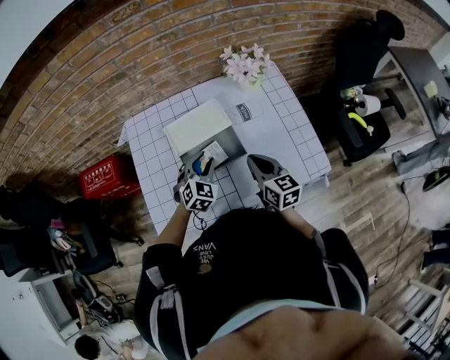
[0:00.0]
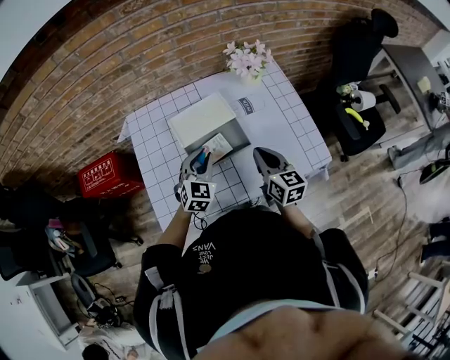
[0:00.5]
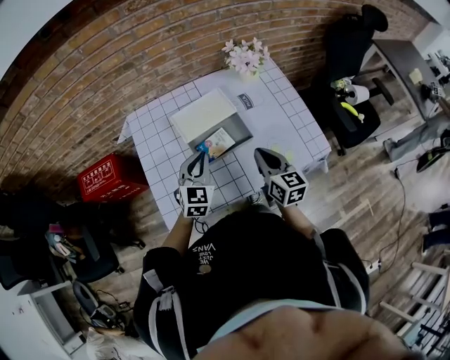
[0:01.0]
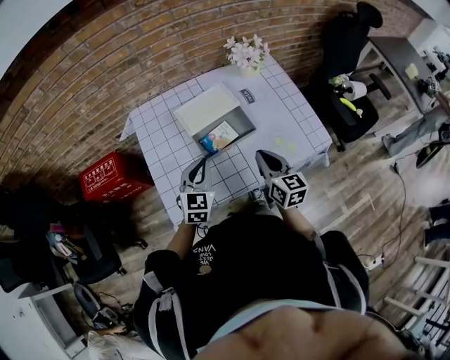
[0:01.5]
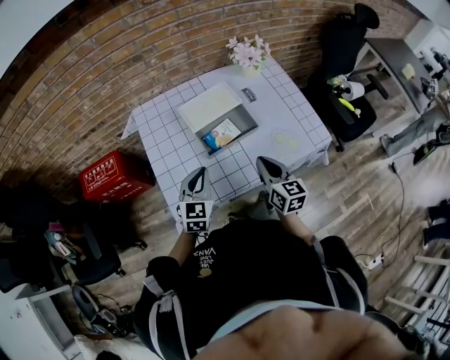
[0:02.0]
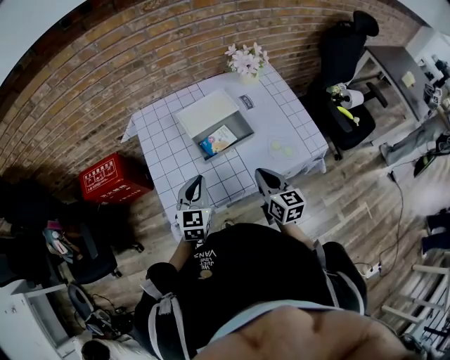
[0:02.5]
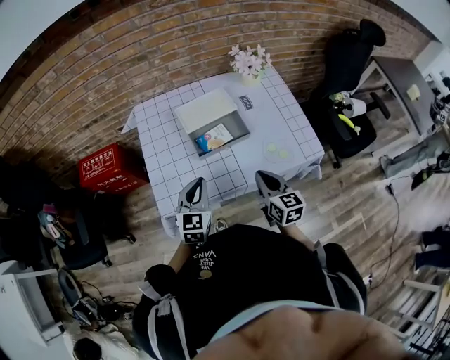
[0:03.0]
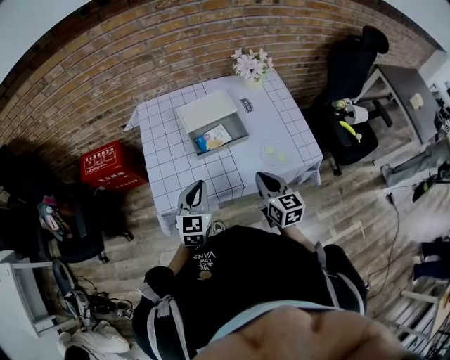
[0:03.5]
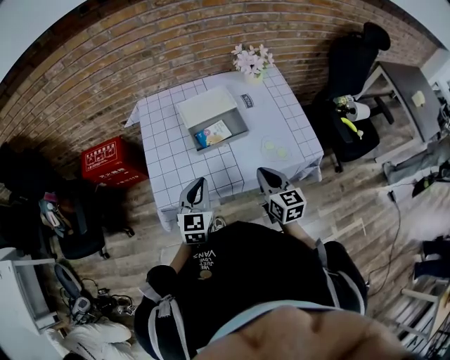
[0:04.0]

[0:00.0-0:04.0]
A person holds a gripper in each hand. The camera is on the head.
0:00.0 to 0:02.0: The two grippers go some 15 cm backward and to the left. The left gripper swivels roughly 30 degrees, and closes its fingers.
0:02.0 to 0:04.0: The left gripper goes some 10 cm backward and to the right. The right gripper moves to the right, about 5 cm.

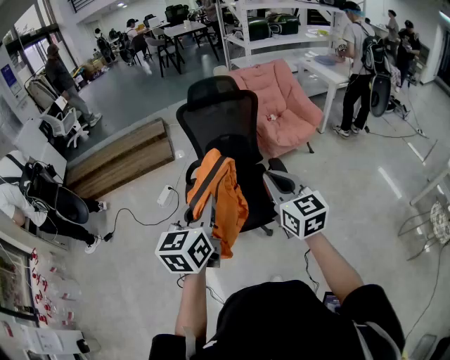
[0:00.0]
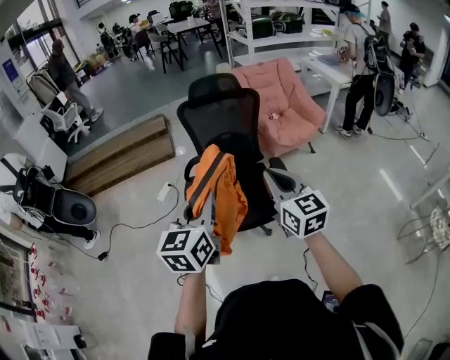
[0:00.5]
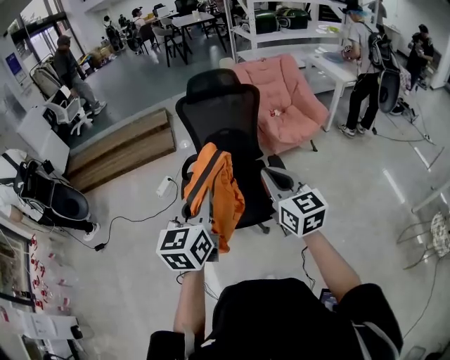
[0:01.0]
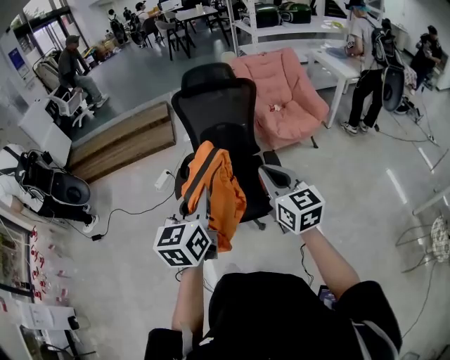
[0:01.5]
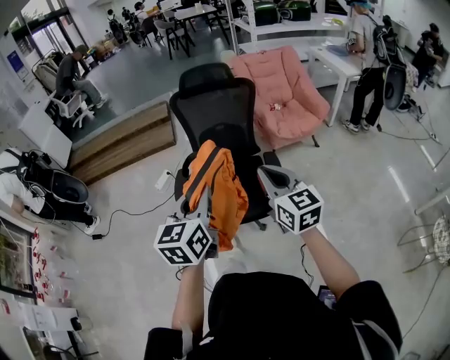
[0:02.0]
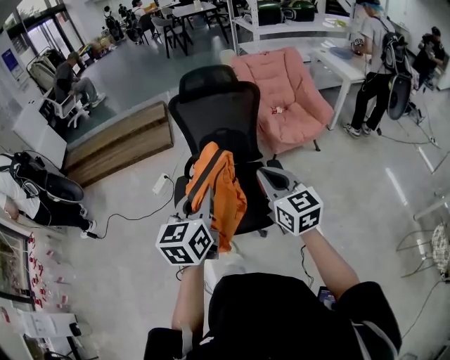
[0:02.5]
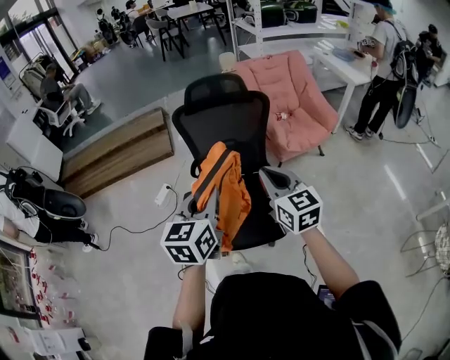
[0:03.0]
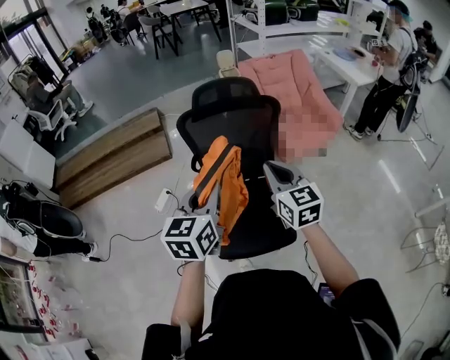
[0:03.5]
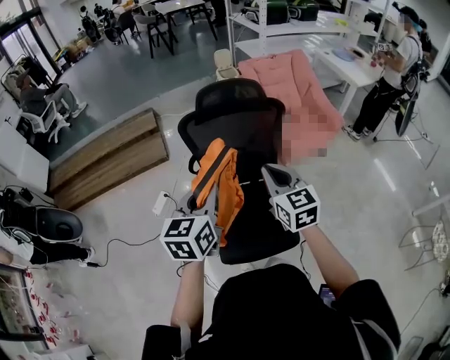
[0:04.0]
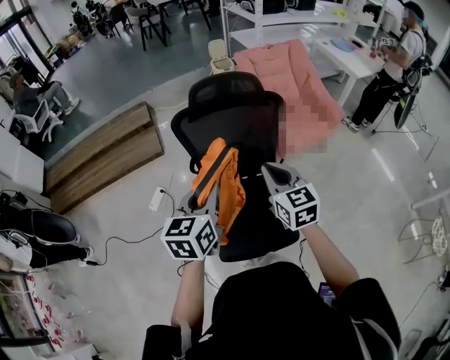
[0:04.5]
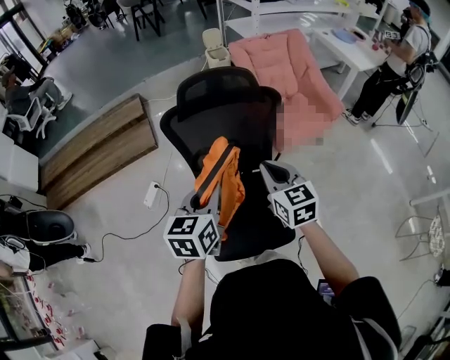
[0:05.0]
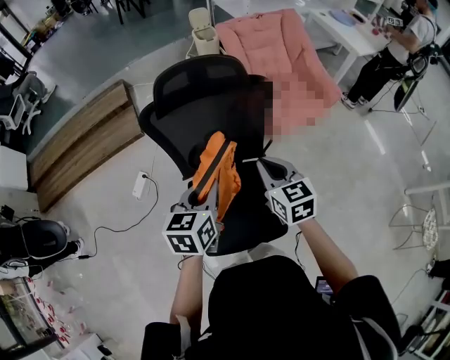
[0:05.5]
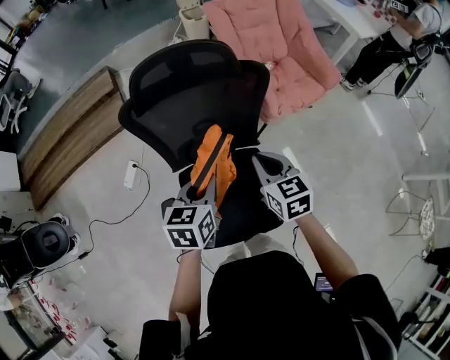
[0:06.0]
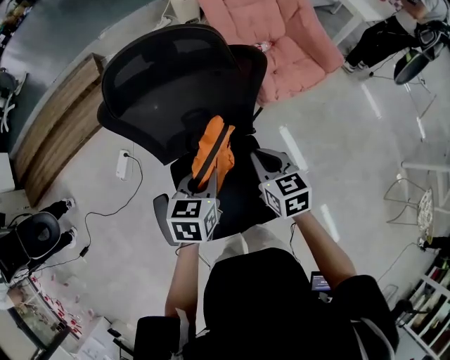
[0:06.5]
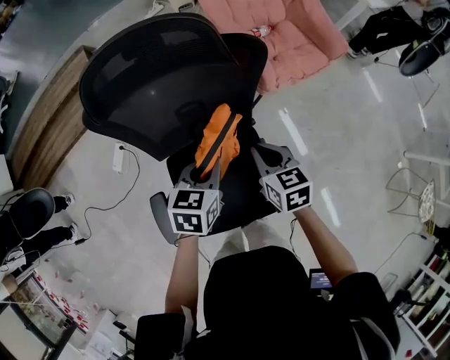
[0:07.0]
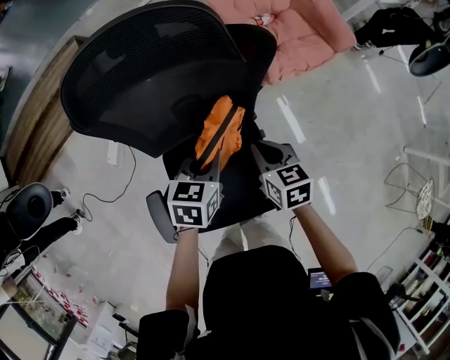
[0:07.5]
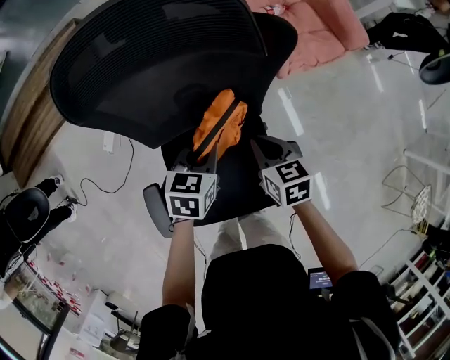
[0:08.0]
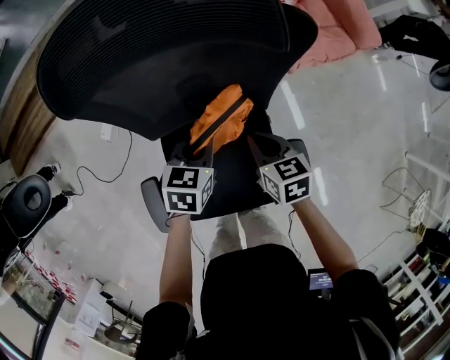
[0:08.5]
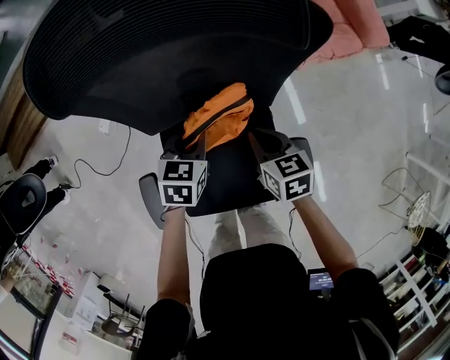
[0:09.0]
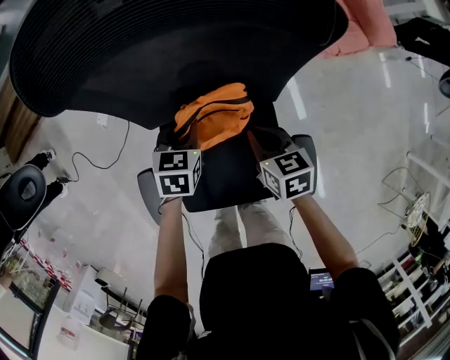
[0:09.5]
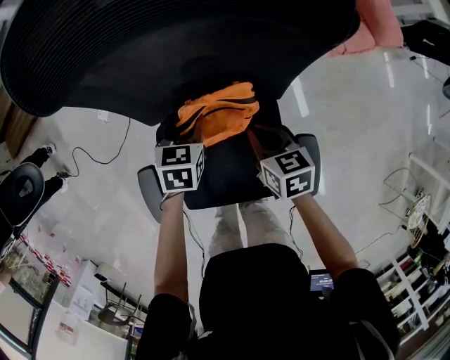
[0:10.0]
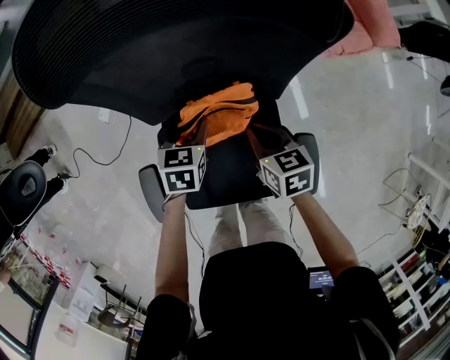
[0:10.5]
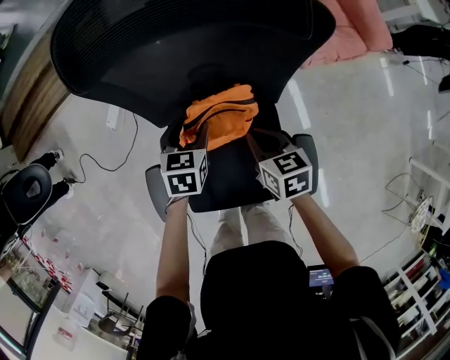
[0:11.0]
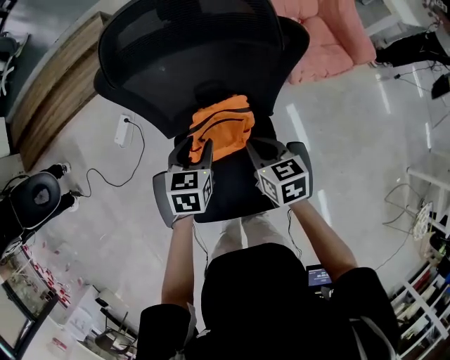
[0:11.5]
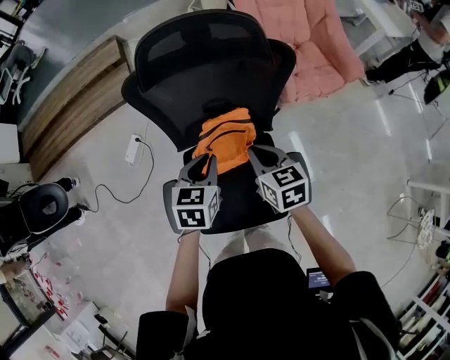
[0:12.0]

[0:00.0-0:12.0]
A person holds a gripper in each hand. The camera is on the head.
0:00.0 to 0:02.0: Both grippers travel together to the right, roughly 10 cm.
0:02.0 to 0:04.0: The grippers both shift forward and to the left by about 35 cm.
0:04.0 to 0:06.0: The two grippers go approximately 25 cm downward, forward and to the right. The left gripper swivels some 20 degrees.
0:06.0 to 0:08.0: The right gripper goes about 20 cm downward. Meanwhile the left gripper heads downward and forward, covering about 20 cm.
0:08.0 to 0:10.0: The left gripper is displaced downward and to the left by approximately 15 cm, and opens. Meanwhile the right gripper shifts approximately 10 cm downward.
0:10.0 to 0:12.0: The left gripper shifts about 25 cm upward and backward, and closes up. The right gripper heads upward, covering approximately 20 cm.

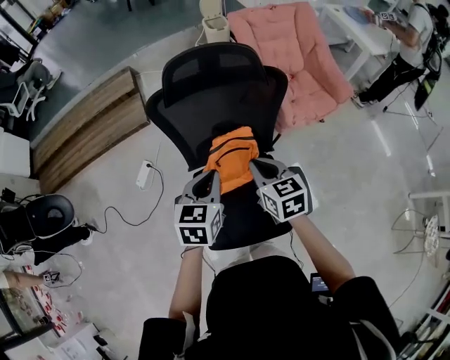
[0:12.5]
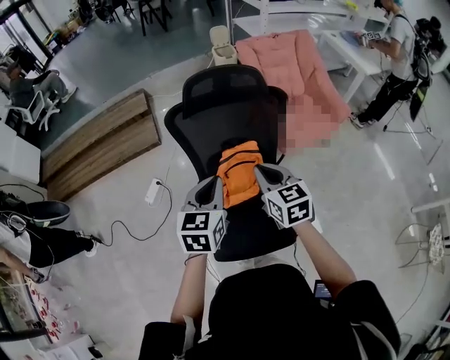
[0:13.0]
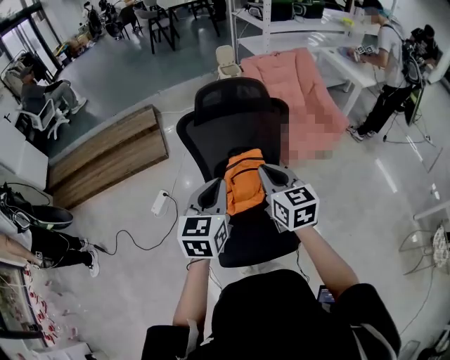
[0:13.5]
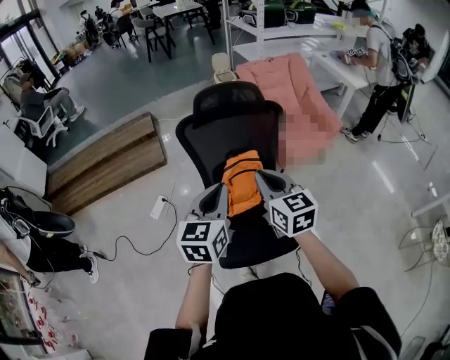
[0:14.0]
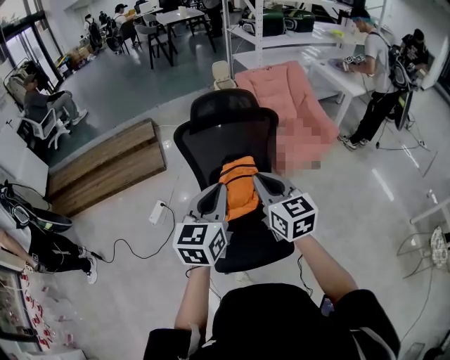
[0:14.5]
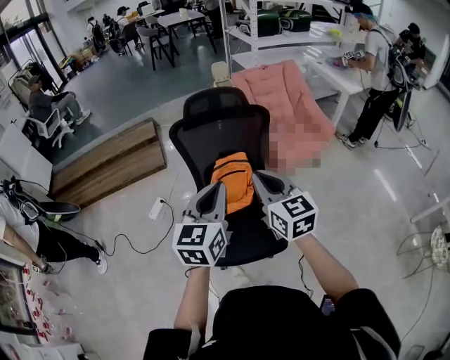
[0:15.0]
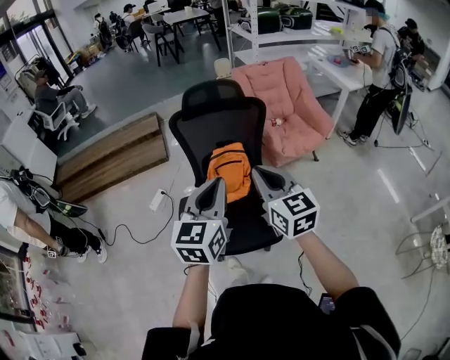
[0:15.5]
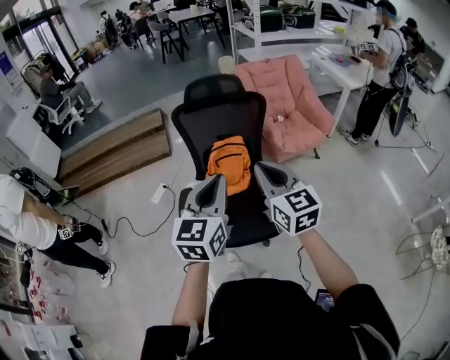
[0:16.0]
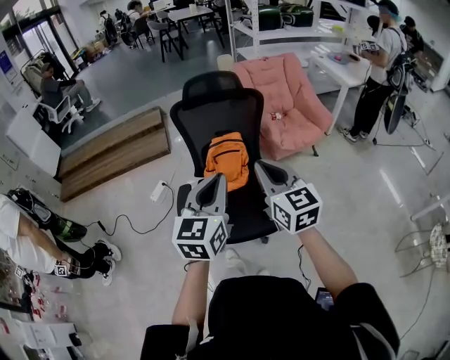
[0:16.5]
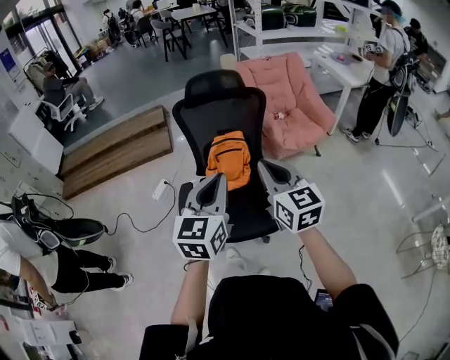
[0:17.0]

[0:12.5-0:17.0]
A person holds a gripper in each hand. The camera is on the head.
0:12.5 to 0:14.5: Both grippers move upward and backward, some 25 cm. The left gripper changes its angle by some 20 degrees, while the right gripper swivels approximately 20 degrees.
0:14.5 to 0:17.0: Both grippers travel together backward and to the right, roughly 20 cm.

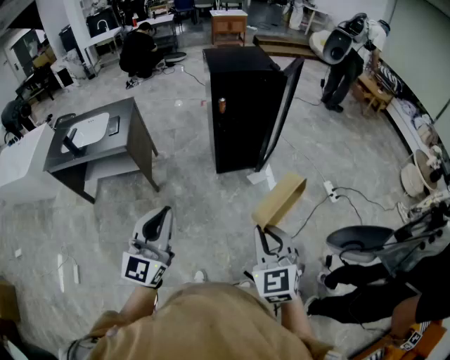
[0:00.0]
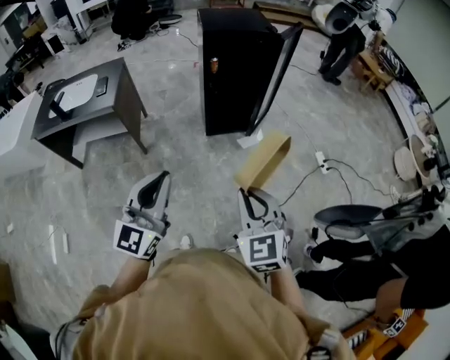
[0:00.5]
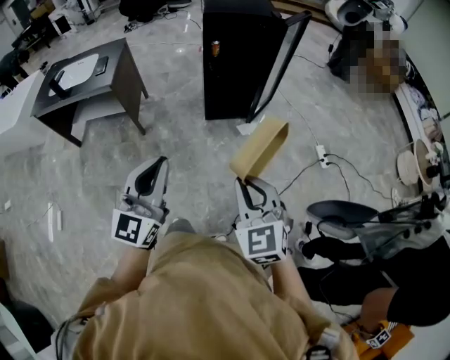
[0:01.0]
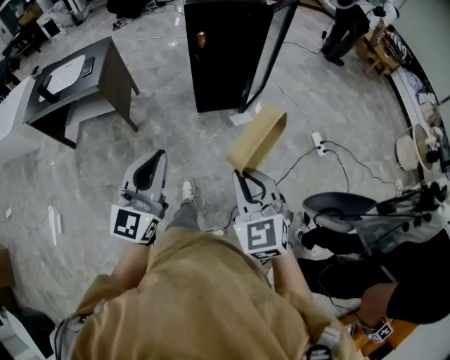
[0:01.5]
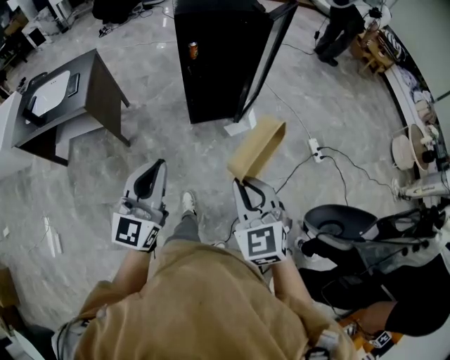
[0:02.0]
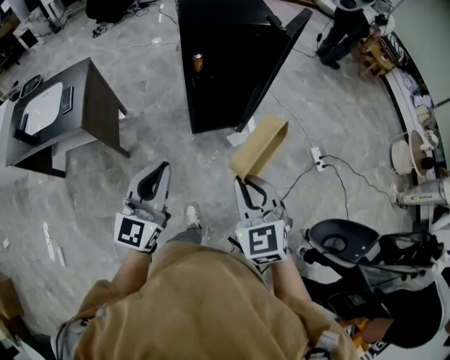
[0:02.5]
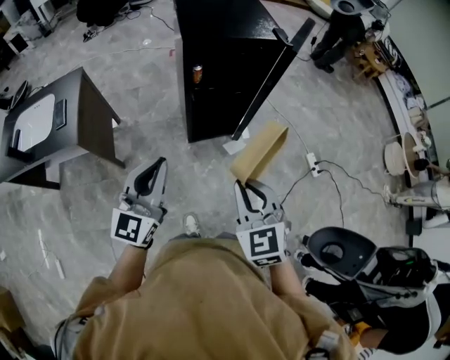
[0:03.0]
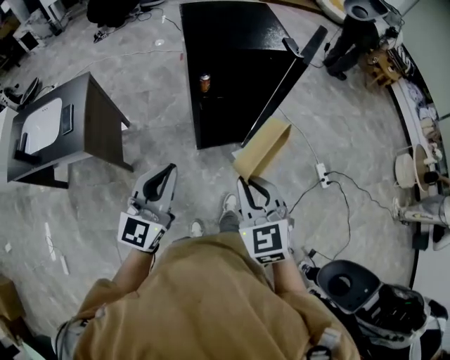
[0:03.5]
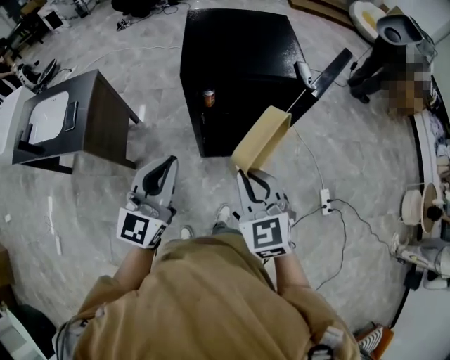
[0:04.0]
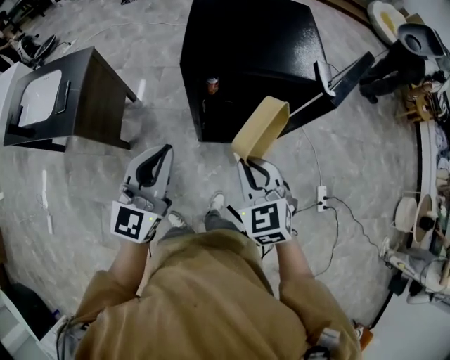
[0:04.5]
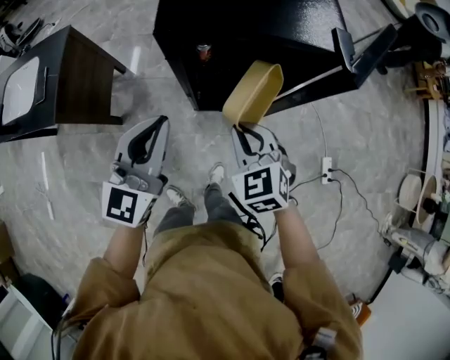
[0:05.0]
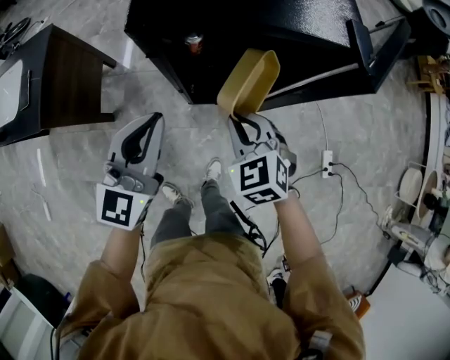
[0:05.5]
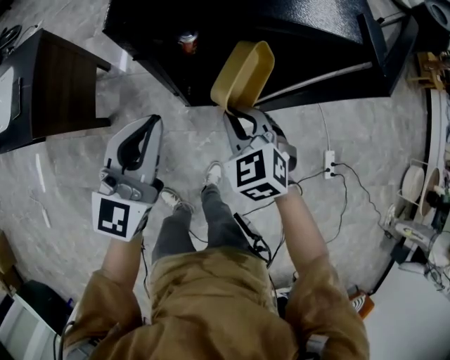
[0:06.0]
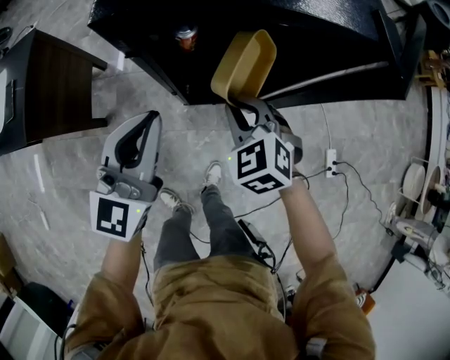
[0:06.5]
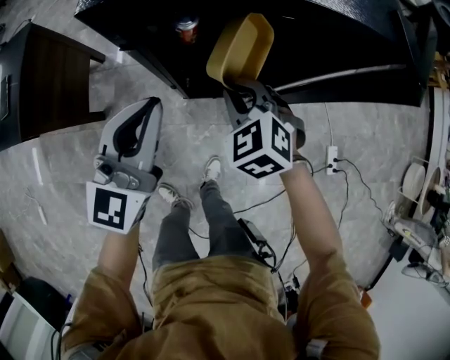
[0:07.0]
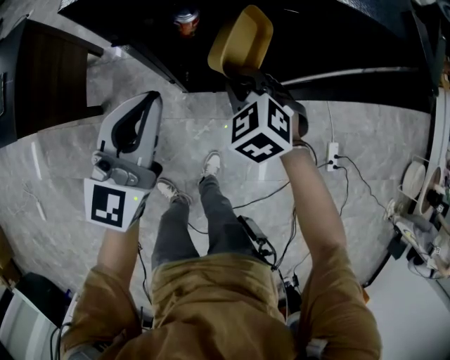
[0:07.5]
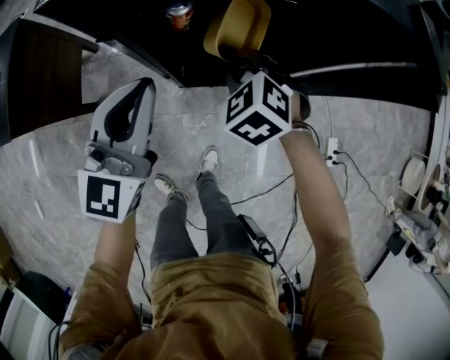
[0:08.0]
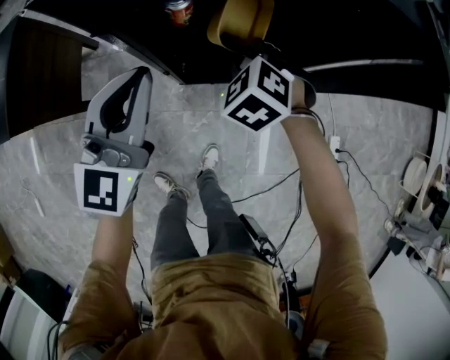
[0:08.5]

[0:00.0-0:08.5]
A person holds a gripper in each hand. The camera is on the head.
0:00.0 to 0:02.0: The right gripper goes approximately 15 cm forward; the left gripper is displaced forward and to the right by about 20 cm.
0:02.0 to 0:04.0: The two grippers travel together, forward, about 40 cm.
0:04.0 to 0:06.5: The grippers both shift downward and forward by approximately 30 cm. The right gripper changes its angle by roughly 20 degrees.
0:06.5 to 0:08.5: The left gripper moves downward and forward, about 10 cm, while the right gripper heads forward and downward, covering roughly 10 cm.
